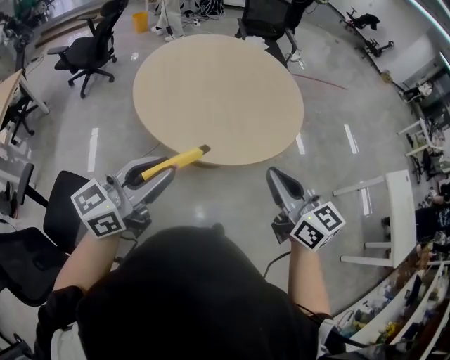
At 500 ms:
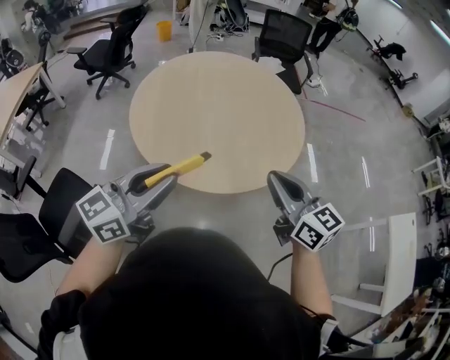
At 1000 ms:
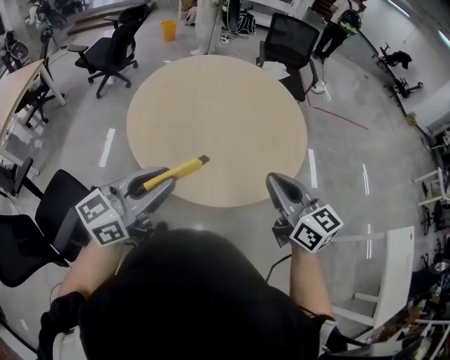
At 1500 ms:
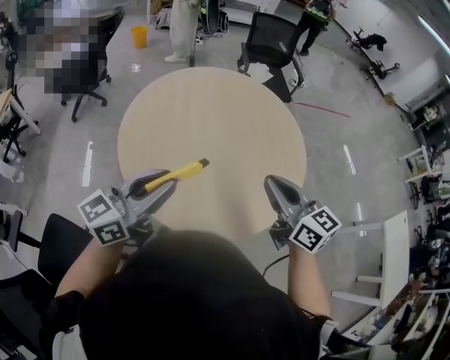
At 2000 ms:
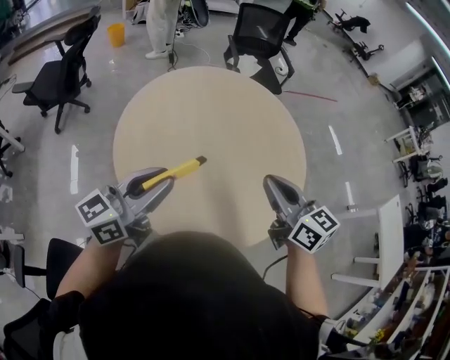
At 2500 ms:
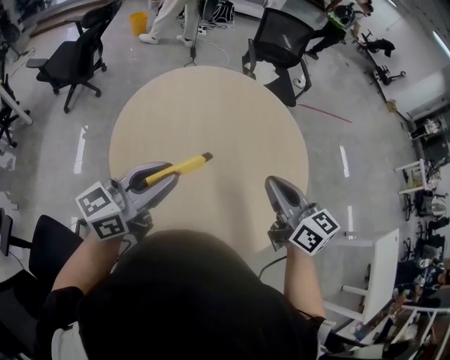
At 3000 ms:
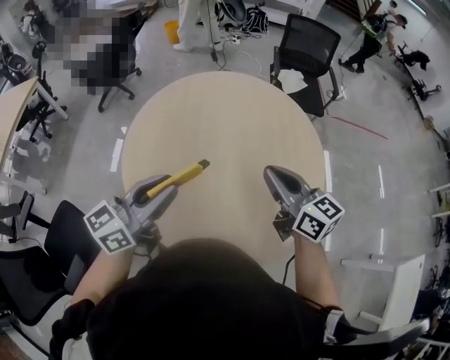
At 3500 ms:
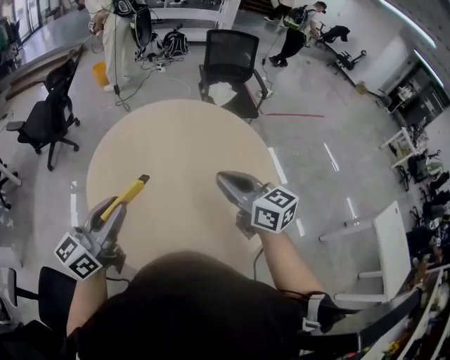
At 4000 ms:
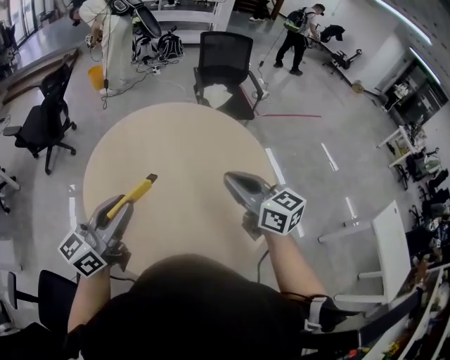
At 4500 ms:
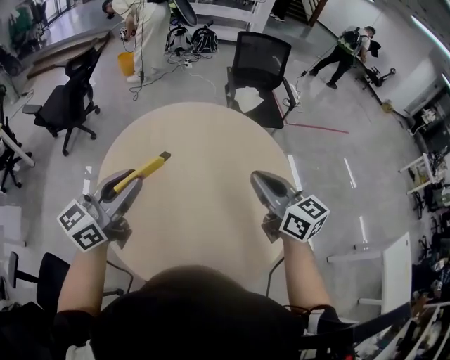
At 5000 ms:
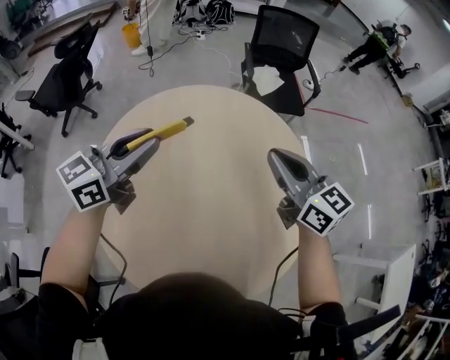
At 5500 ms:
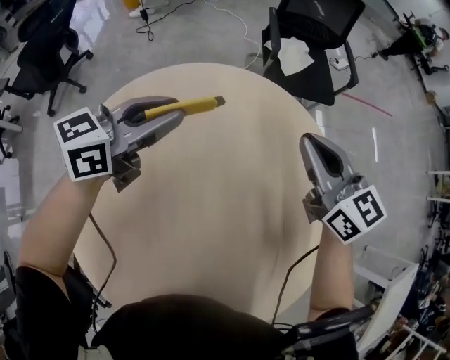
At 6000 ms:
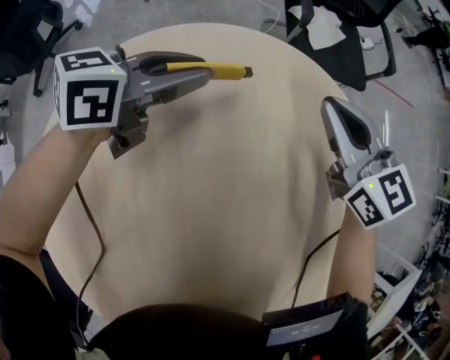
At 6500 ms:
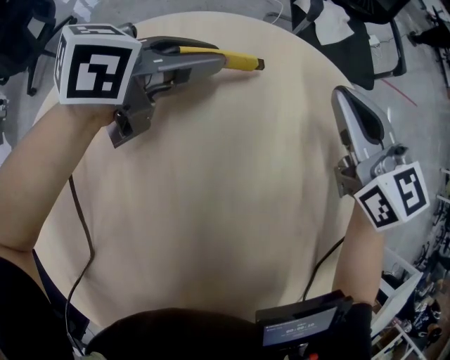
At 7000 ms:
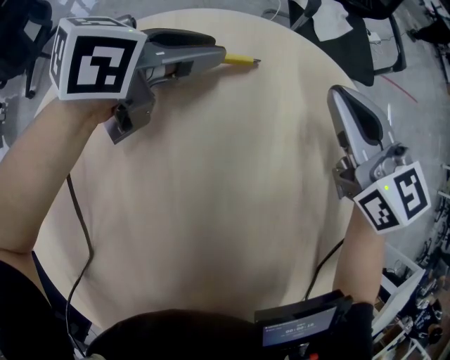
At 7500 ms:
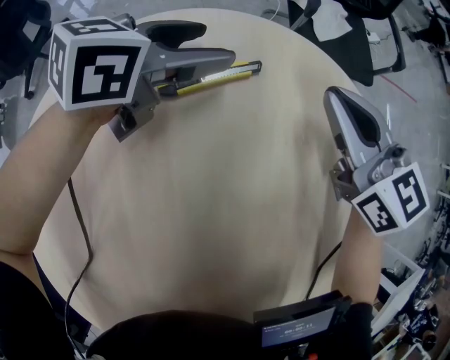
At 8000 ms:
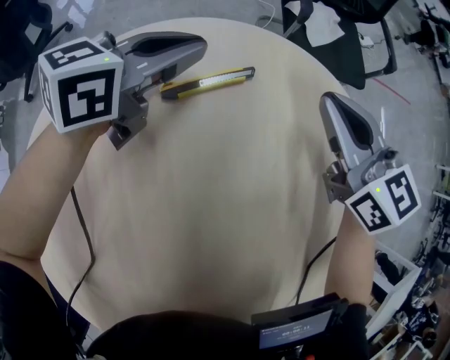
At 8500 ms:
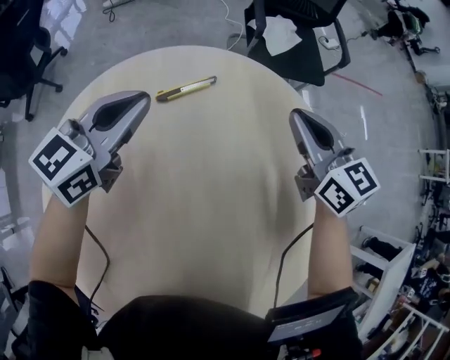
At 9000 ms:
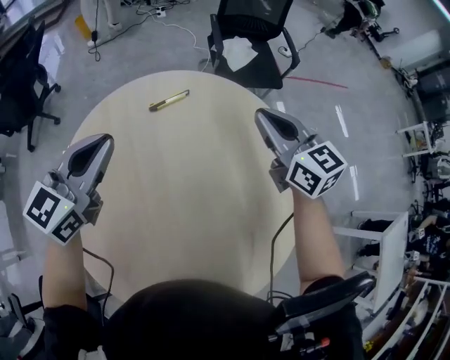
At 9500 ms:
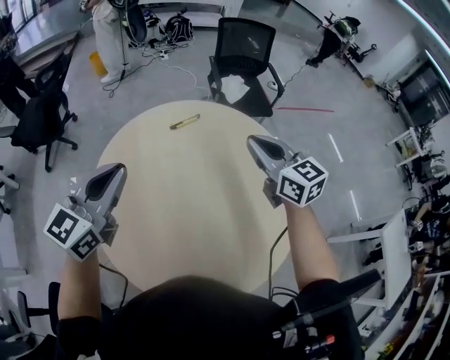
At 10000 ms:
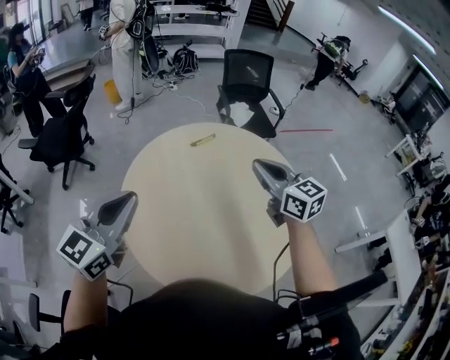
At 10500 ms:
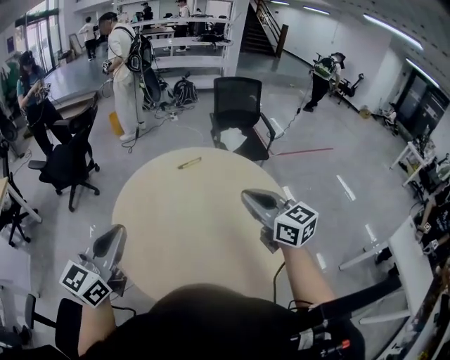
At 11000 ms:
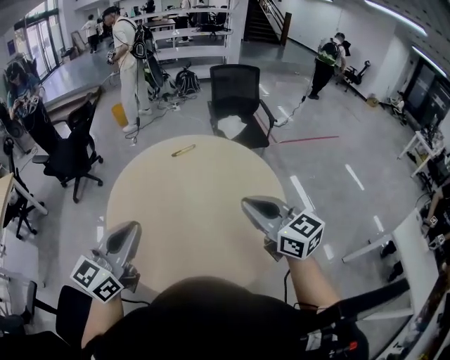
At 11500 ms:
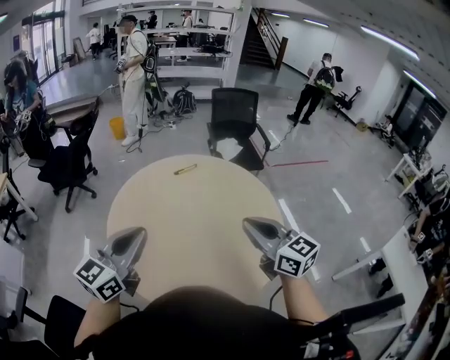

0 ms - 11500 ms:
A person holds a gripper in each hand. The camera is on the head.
0 ms - 2000 ms: The grippers both shift forward by some 35 cm.
2000 ms - 4000 ms: The right gripper goes some 10 cm to the right and forward. Meanwhile the left gripper goes left and right, about 10 cm each way, reversing 2 times.
4000 ms - 6000 ms: The two grippers travel together, forward, about 60 cm. The two grippers go about 30 cm downward. The left gripper rotates approximately 40 degrees.
6000 ms - 7500 ms: The left gripper ends up some 5 cm from where it was, and opens its fingers.
7500 ms - 9500 ms: The right gripper travels upward and backward by approximately 50 cm. The left gripper moves backward and upward, approximately 60 cm, rotates approximately 40 degrees, and closes.
9500 ms - 11500 ms: Both grippers move backward, some 30 cm.

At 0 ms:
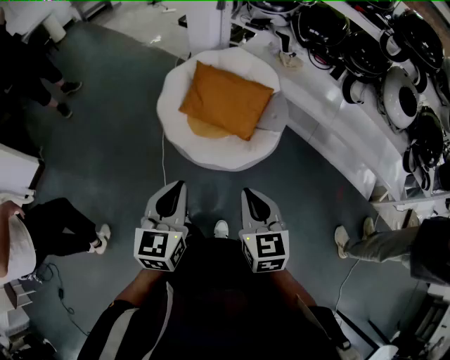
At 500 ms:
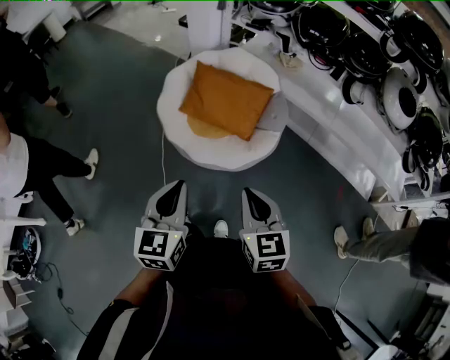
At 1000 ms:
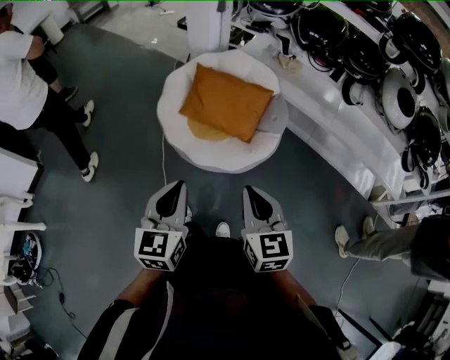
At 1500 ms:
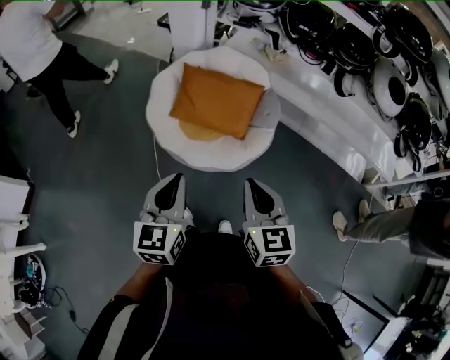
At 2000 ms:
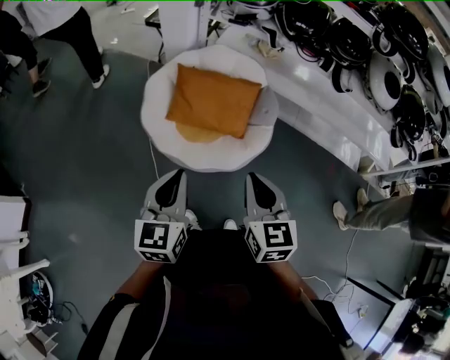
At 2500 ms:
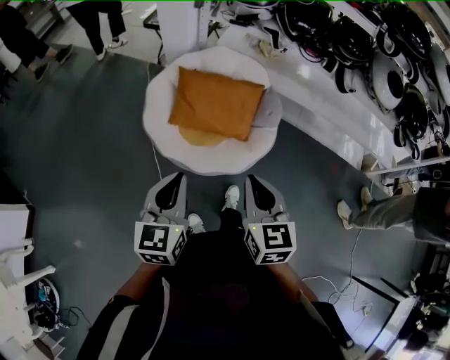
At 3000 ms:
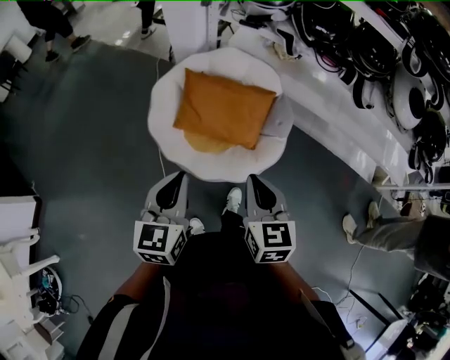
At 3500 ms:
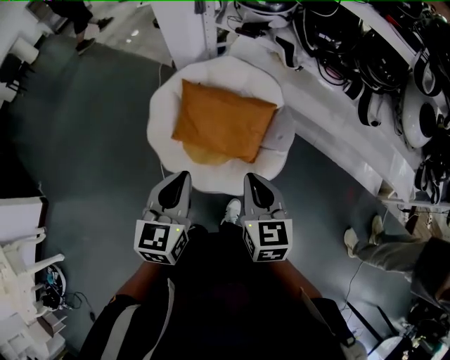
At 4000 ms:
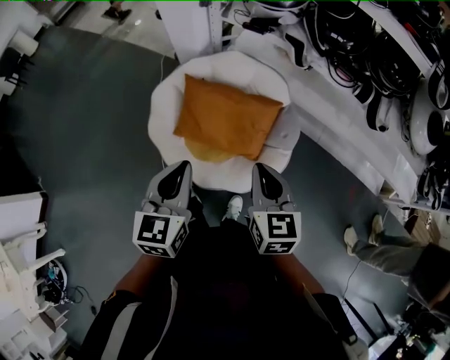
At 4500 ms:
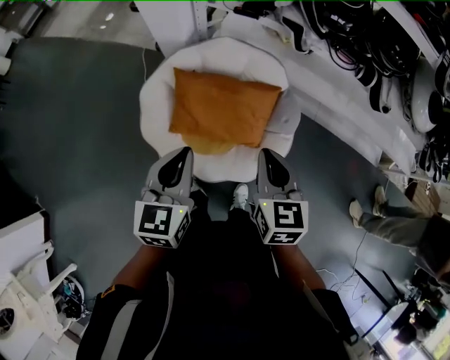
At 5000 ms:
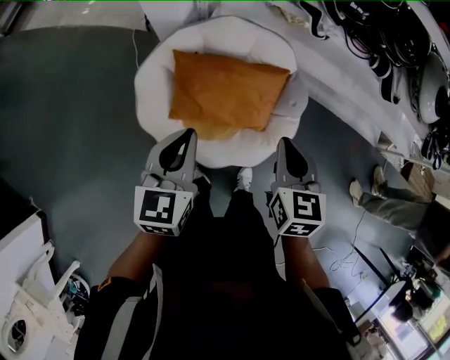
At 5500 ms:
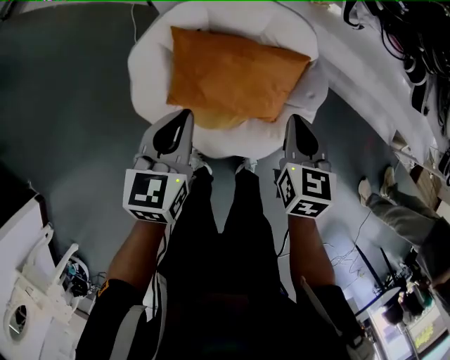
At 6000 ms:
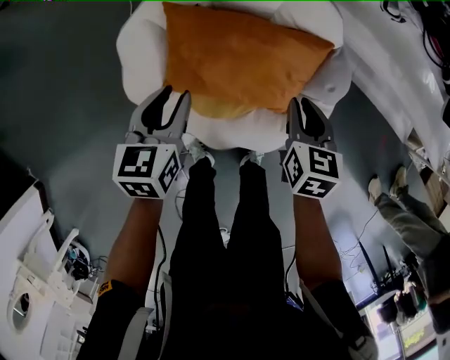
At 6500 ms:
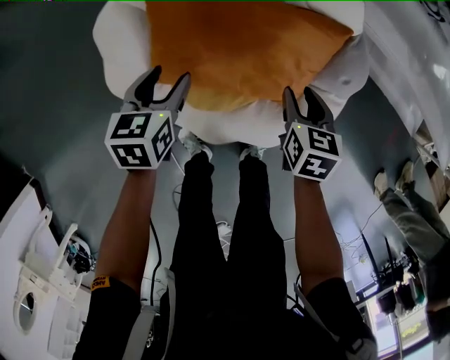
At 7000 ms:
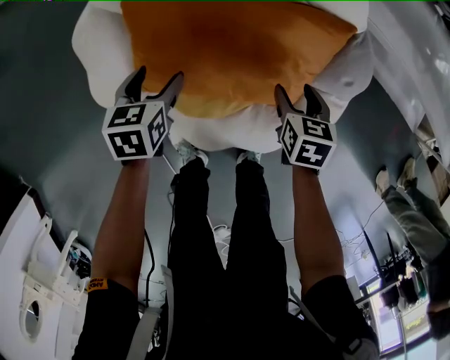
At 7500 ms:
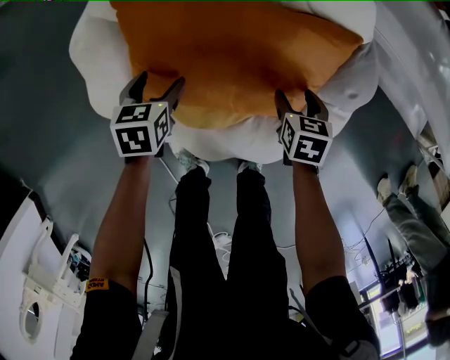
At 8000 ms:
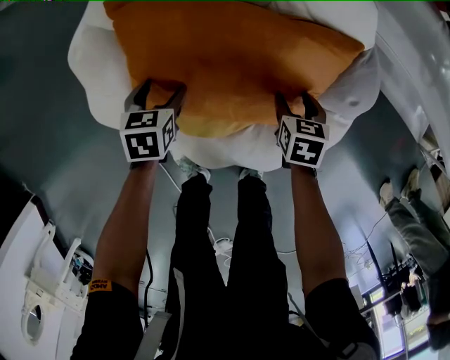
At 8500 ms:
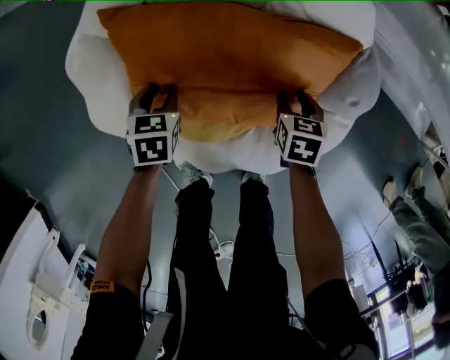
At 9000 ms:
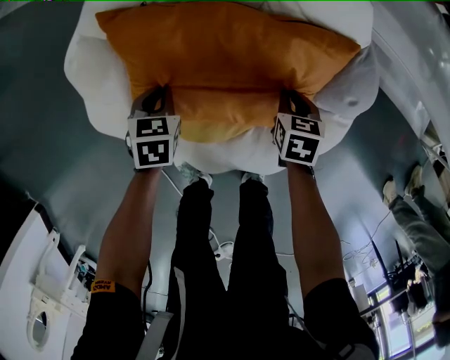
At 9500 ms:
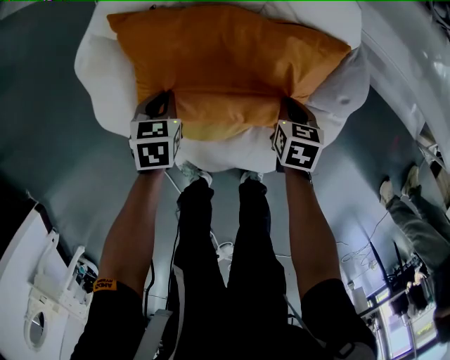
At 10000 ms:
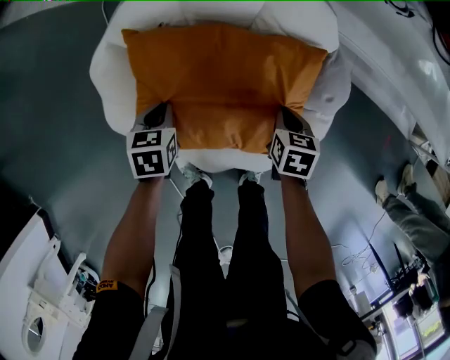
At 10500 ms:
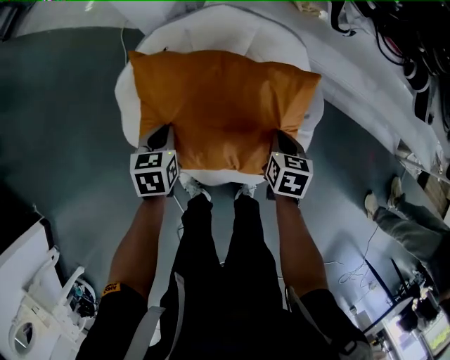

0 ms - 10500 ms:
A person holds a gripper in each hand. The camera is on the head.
0 ms - 2000 ms: The left gripper shifts roughly 15 cm forward and to the left. The right gripper is displaced to the left and forward by about 15 cm.
2000 ms - 4000 ms: The grippers both shift forward by roughly 25 cm.
4000 ms - 6500 ms: The right gripper goes some 40 cm downward, turns by roughly 30 degrees, and opens up. The left gripper goes about 50 cm downward and forward, rotates about 30 degrees, and opens up.
6500 ms - 8500 ms: The grippers both shift downward by approximately 15 cm. The right gripper opens, then closes once more.
8500 ms - 10500 ms: Both grippers move upward, approximately 25 cm. The right gripper closes, while the left gripper closes its fingers.

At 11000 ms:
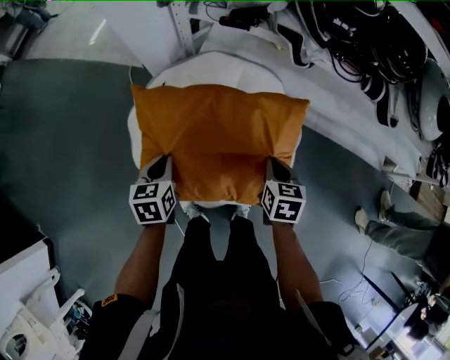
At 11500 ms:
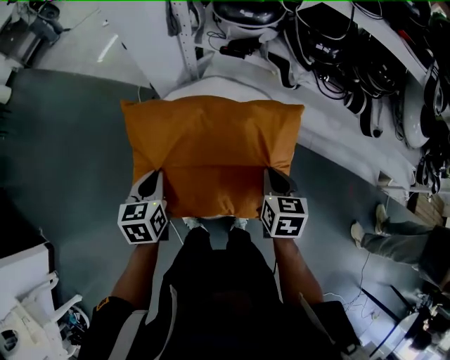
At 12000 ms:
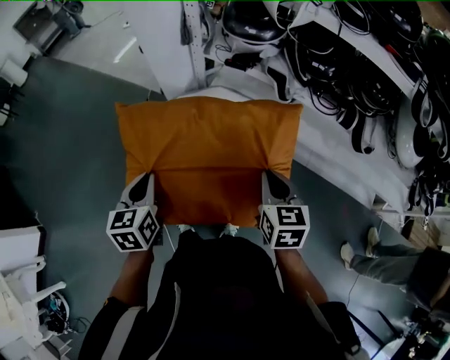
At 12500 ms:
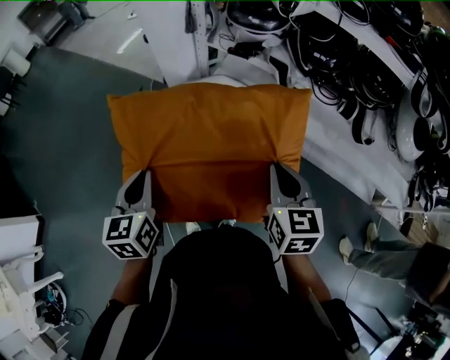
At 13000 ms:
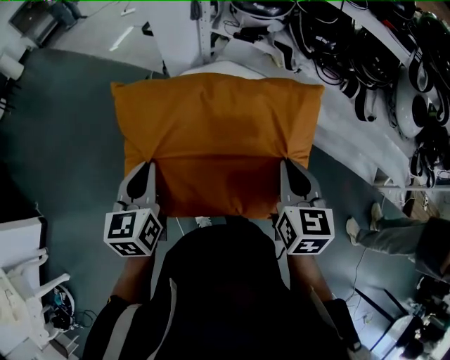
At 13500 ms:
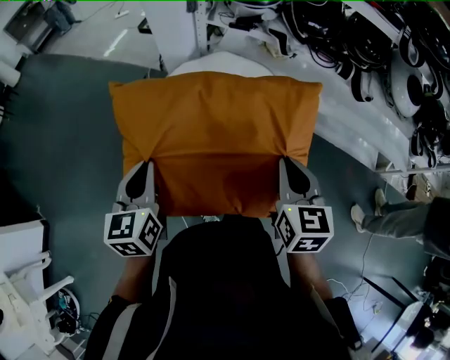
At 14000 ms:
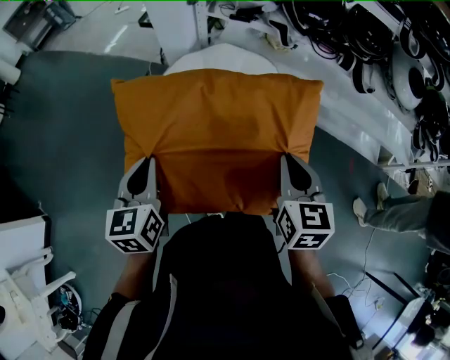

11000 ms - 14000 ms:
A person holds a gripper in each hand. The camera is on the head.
11000 ms - 12500 ms: The left gripper is displaced upward and backward by roughly 25 cm, and rotates some 20 degrees; the right gripper is displaced upward by approximately 25 cm, and swivels some 30 degrees.
12500 ms - 14000 ms: The right gripper heads backward, covering approximately 15 cm. Meanwhile the left gripper goes approximately 15 cm backward and to the left.

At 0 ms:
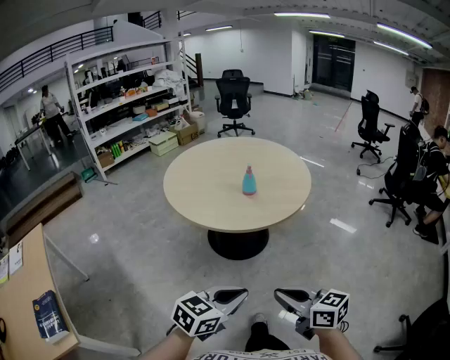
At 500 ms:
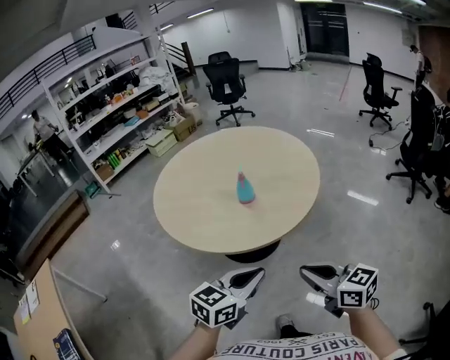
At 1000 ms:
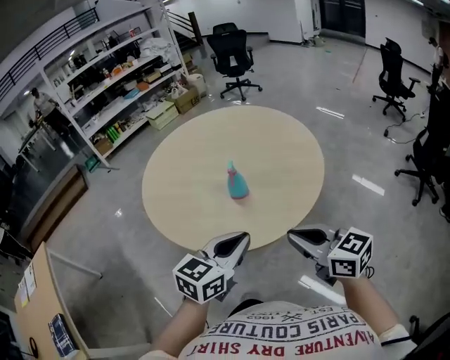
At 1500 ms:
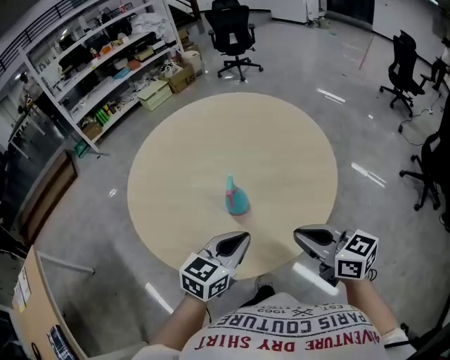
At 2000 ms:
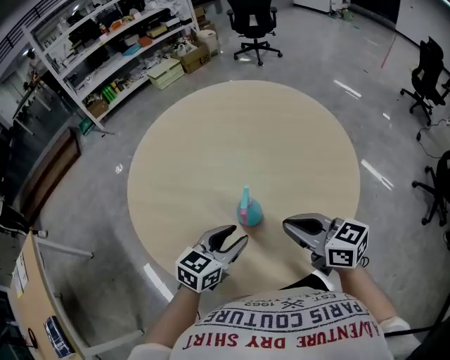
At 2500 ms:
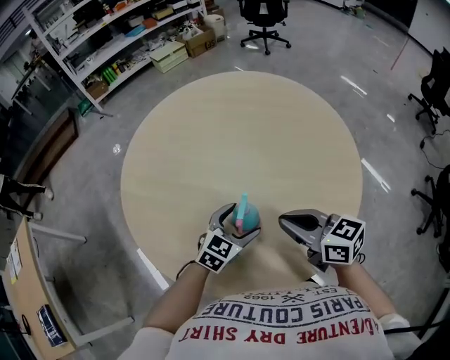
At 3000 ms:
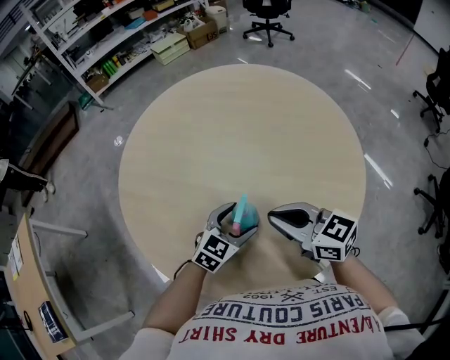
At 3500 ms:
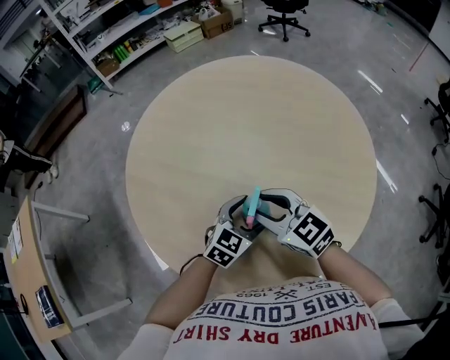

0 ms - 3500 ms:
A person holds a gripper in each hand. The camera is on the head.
0 ms - 2000 ms: The two grippers travel together, forward, about 60 cm. The left gripper opens.
2000 ms - 3500 ms: The right gripper moves forward and to the left, approximately 10 cm, swivels roughly 30 degrees, and opens its fingers. Meanwhile the left gripper moves forward, downward and to the right, approximately 10 cm, and opens up.
